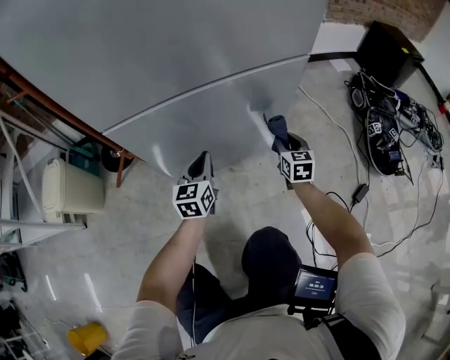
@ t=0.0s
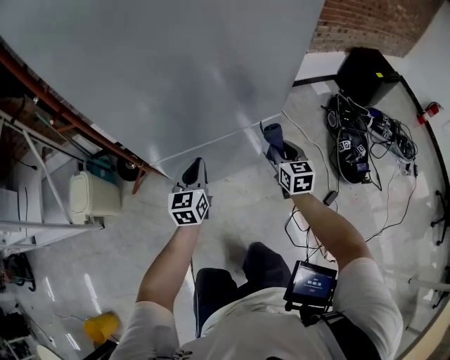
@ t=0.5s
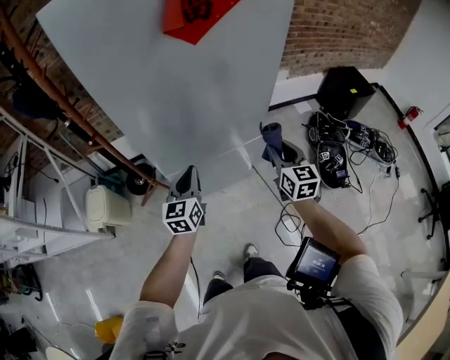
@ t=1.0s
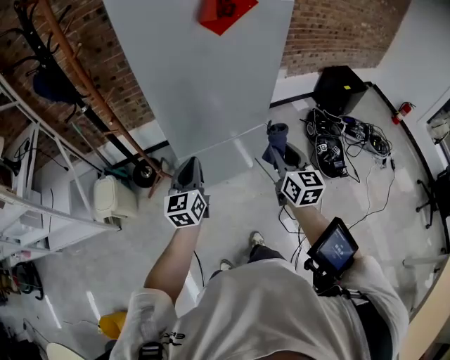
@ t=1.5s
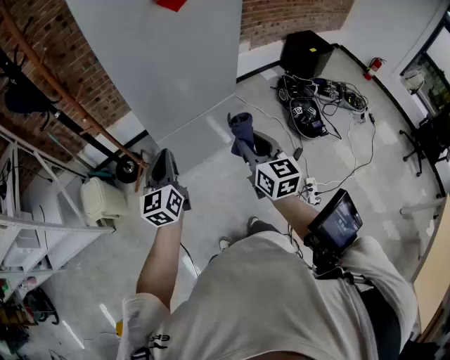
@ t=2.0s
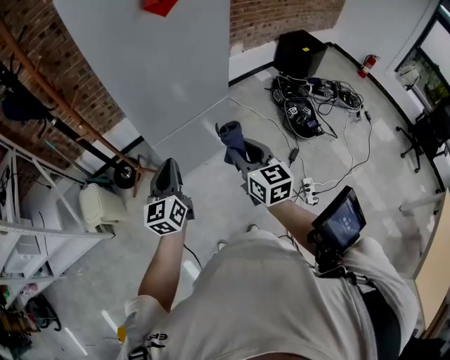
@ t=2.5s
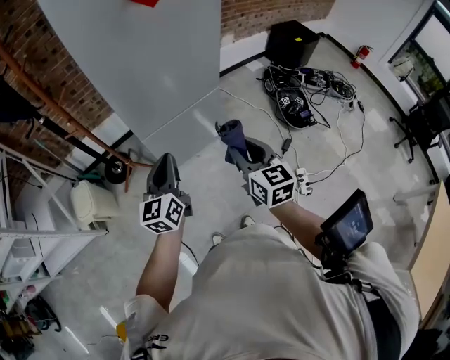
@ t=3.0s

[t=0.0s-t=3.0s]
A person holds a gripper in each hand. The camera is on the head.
t=0.0s to t=1.5s: The left gripper shifts roughly 60 cm upward. The right gripper is displaced upward and backward by approximately 70 cm, and turns by approximately 20 degrees.
t=1.5s to t=3.0s: The grippers both shift backward by roughly 10 cm.

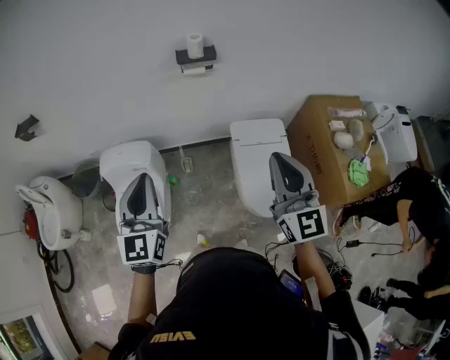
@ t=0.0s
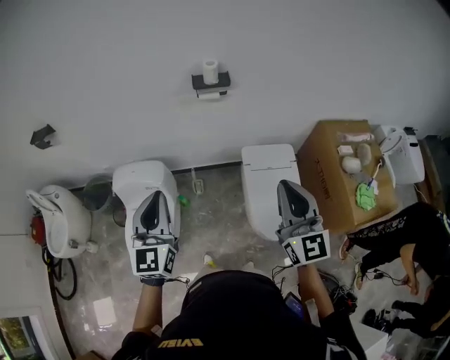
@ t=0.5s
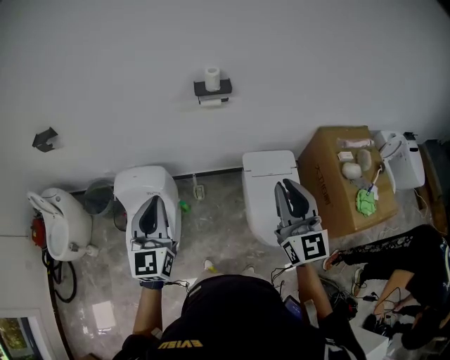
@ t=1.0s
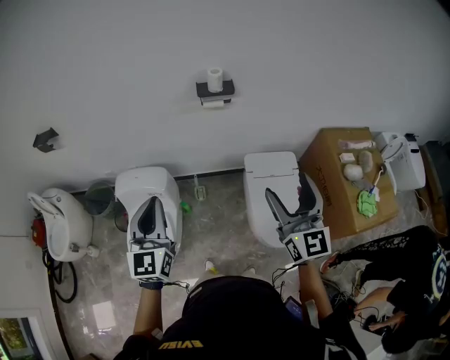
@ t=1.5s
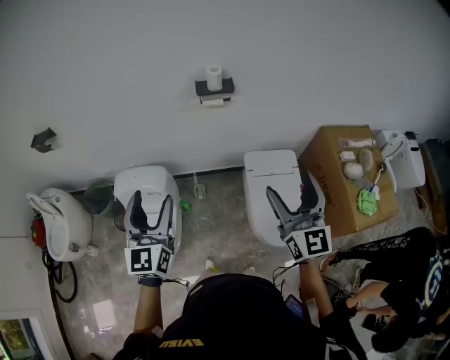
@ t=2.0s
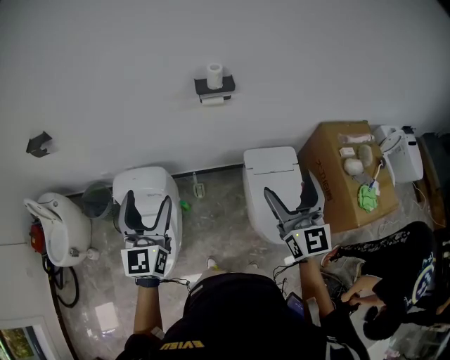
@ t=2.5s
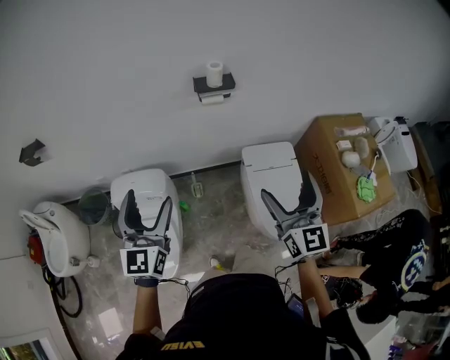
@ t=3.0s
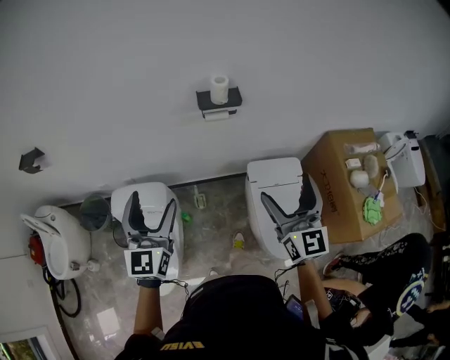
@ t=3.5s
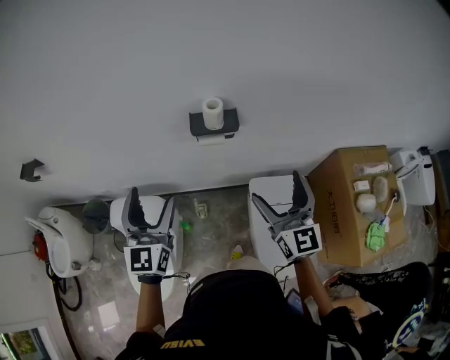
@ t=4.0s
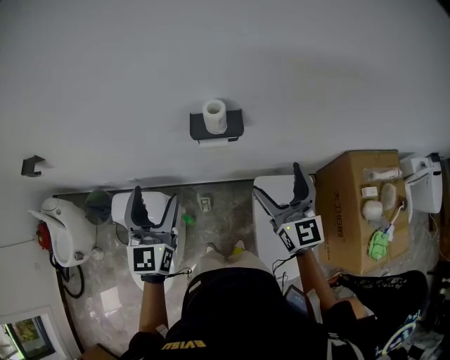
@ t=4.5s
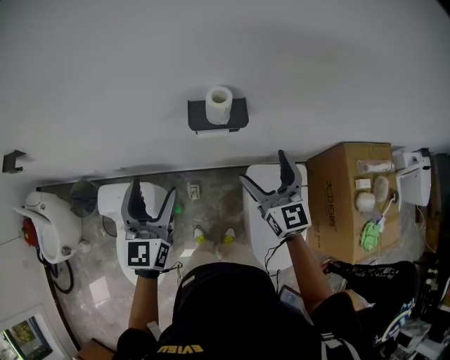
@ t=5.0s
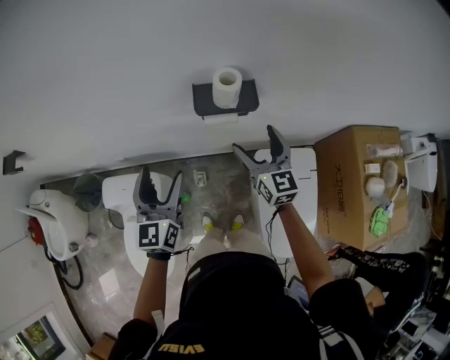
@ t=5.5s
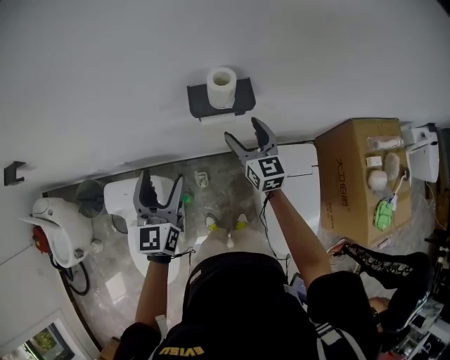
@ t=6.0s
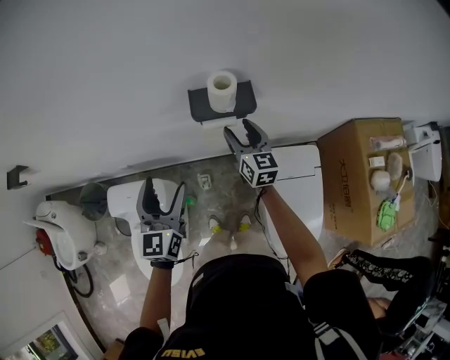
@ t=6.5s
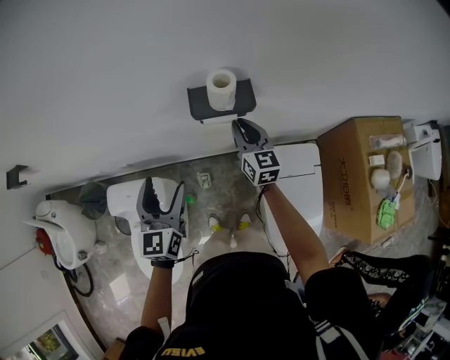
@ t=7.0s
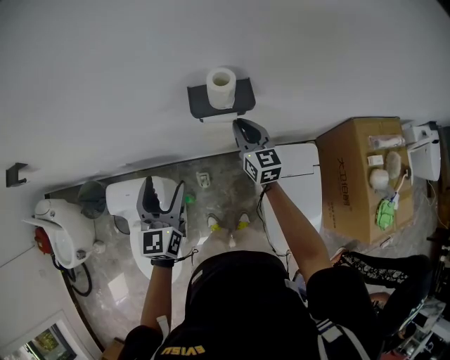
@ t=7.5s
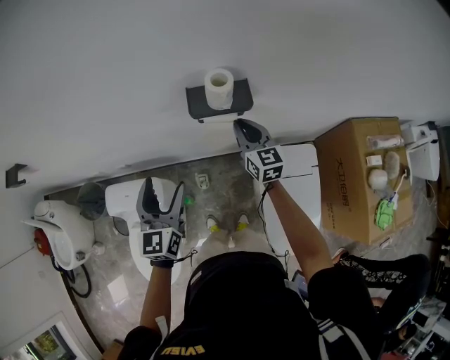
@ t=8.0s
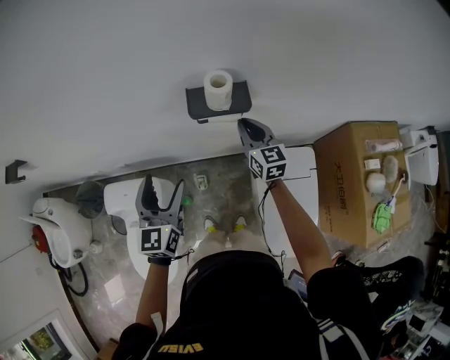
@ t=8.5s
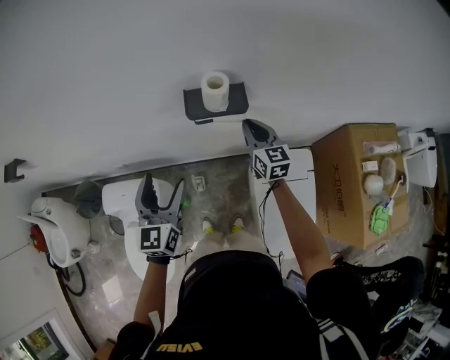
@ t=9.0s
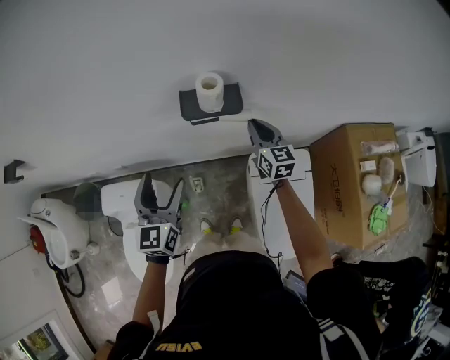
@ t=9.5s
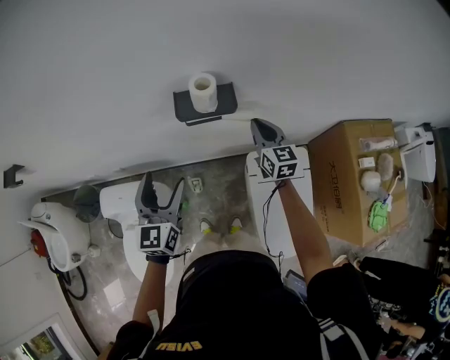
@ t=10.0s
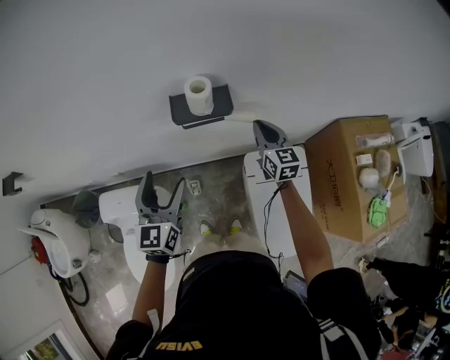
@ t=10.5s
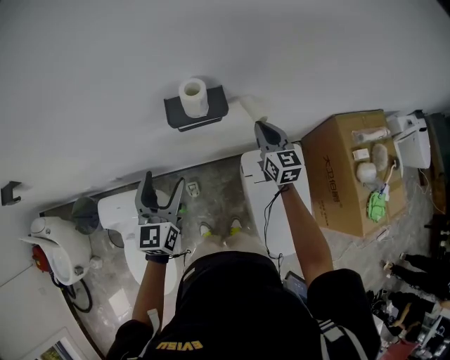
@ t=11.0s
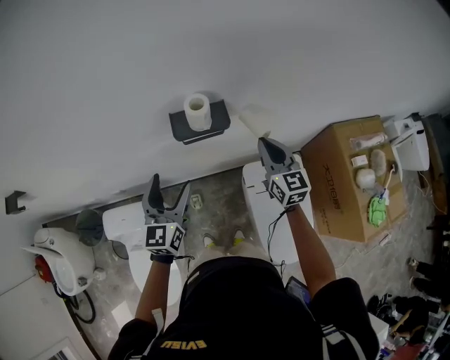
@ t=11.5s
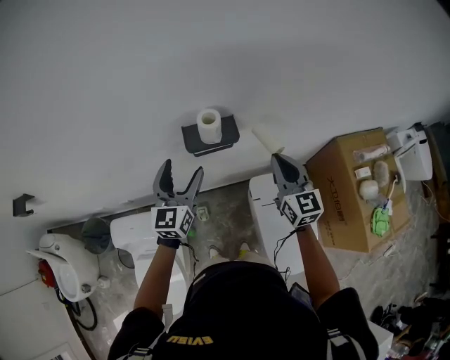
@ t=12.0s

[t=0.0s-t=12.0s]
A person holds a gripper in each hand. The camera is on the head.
t=0.0s to t=2.0s: The right gripper opens its fingers, while the left gripper opens its fingers.
t=2.0s to t=4.0s: The grippers both shift forward by some 25 cm.
t=4.0s to t=6.0s: The right gripper shifts approximately 25 cm forward and downward. Meanwhile the left gripper moves downward and forward, roughly 15 cm.
t=6.0s to t=8.0s: The right gripper closes up.
t=8.0s to t=10.0s: The right gripper shifts approximately 10 cm to the right.
t=10.0s to t=12.0s: The left gripper heads forward, covering some 10 cm. The right gripper travels upward and backward by about 15 cm.

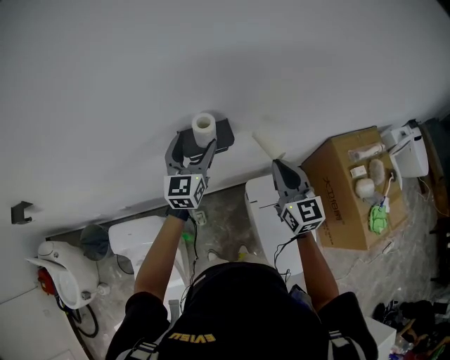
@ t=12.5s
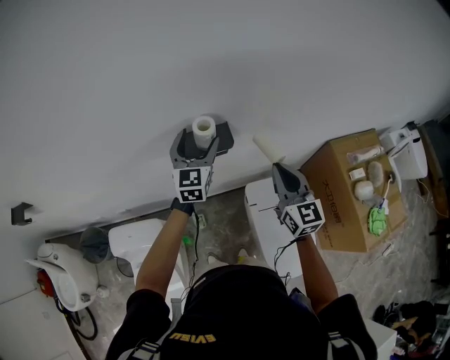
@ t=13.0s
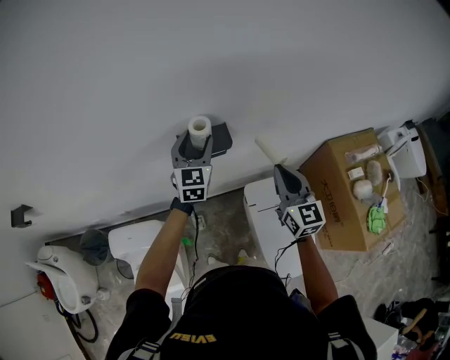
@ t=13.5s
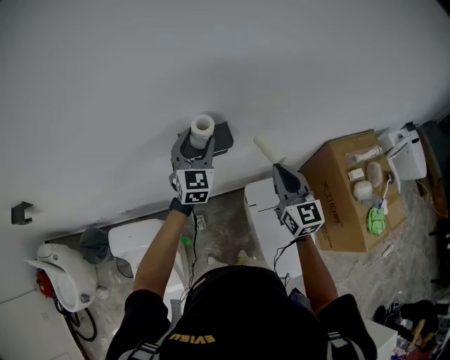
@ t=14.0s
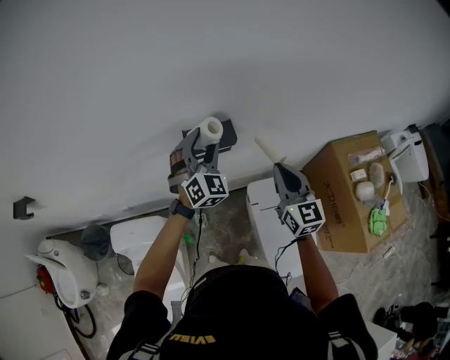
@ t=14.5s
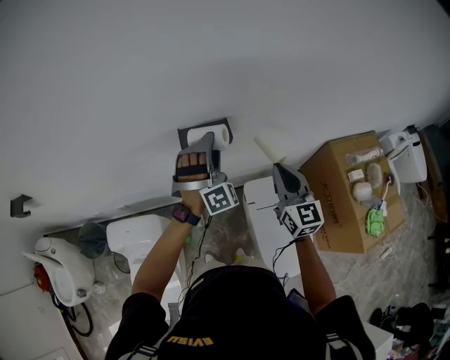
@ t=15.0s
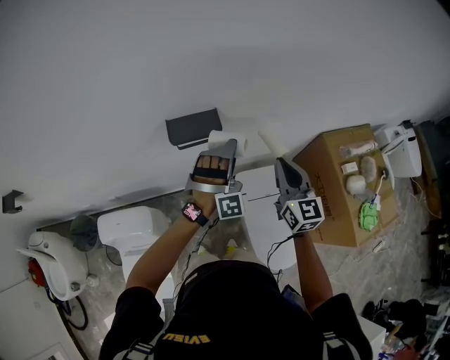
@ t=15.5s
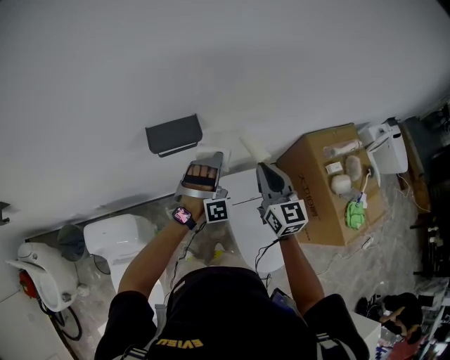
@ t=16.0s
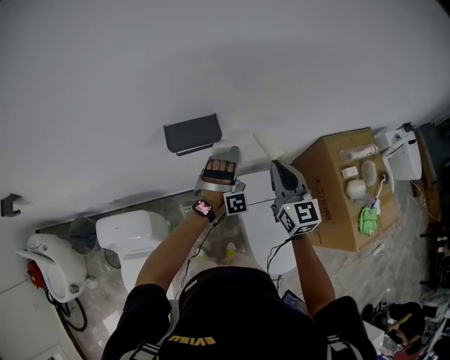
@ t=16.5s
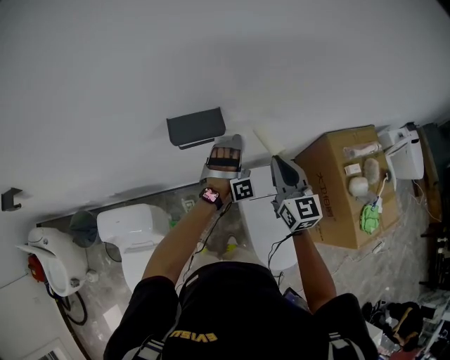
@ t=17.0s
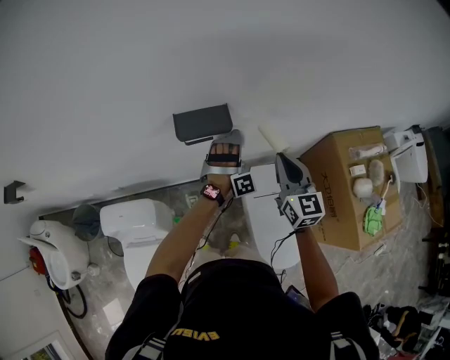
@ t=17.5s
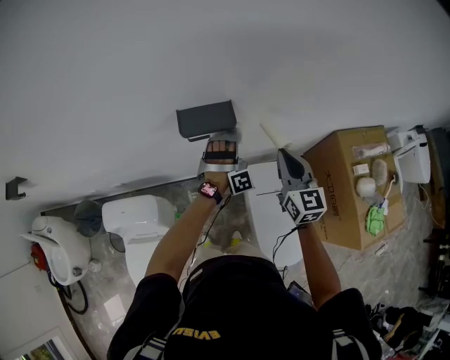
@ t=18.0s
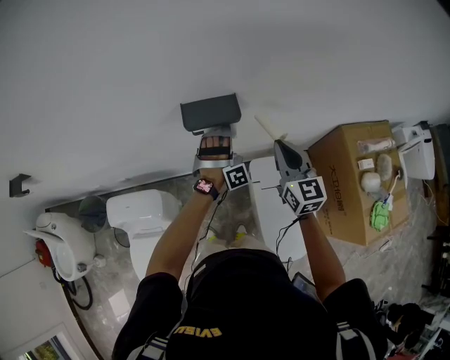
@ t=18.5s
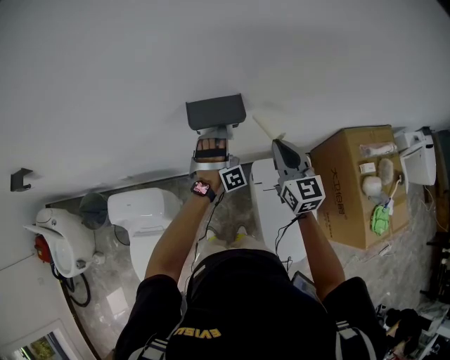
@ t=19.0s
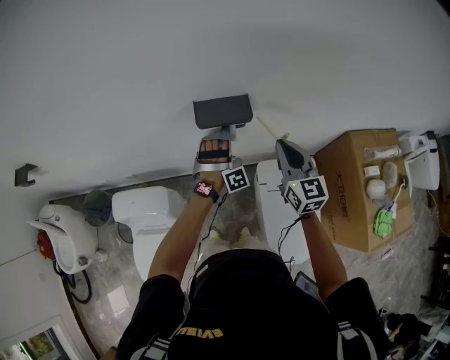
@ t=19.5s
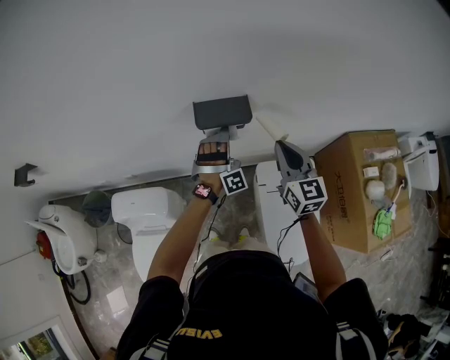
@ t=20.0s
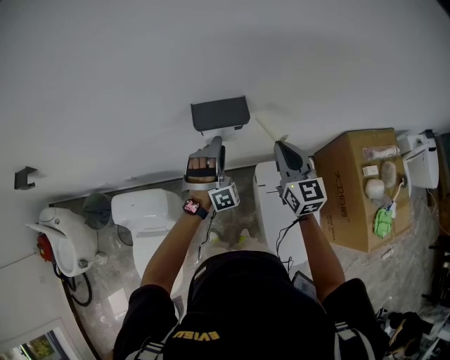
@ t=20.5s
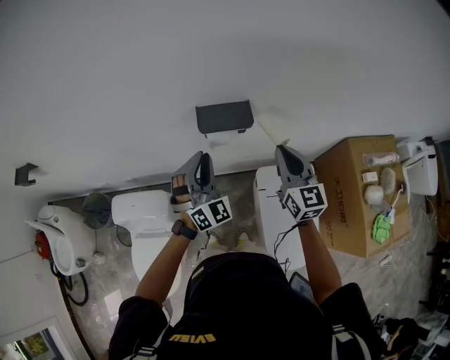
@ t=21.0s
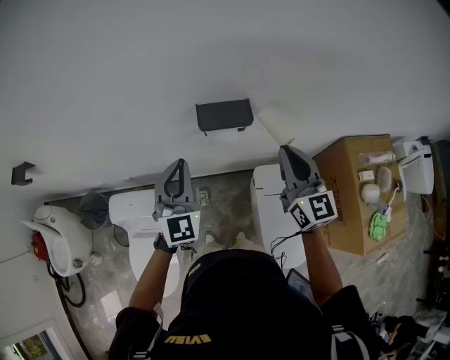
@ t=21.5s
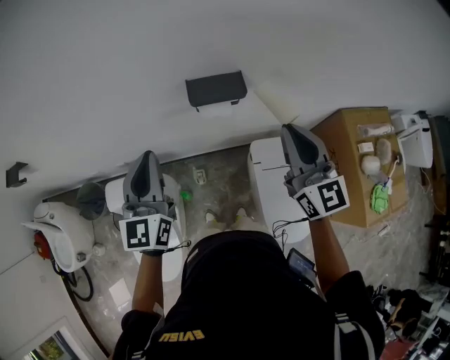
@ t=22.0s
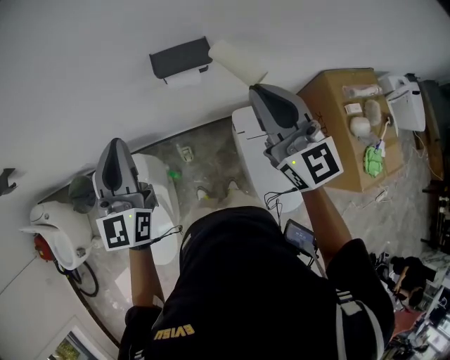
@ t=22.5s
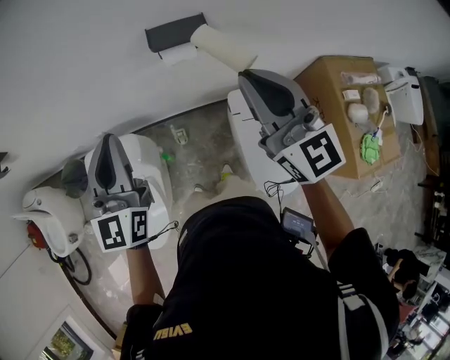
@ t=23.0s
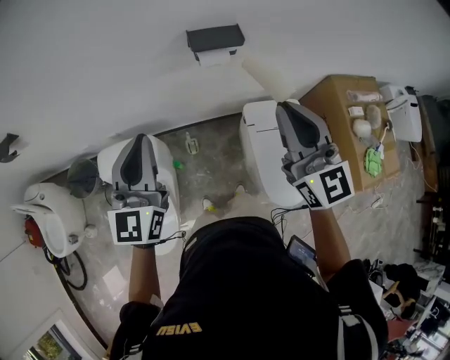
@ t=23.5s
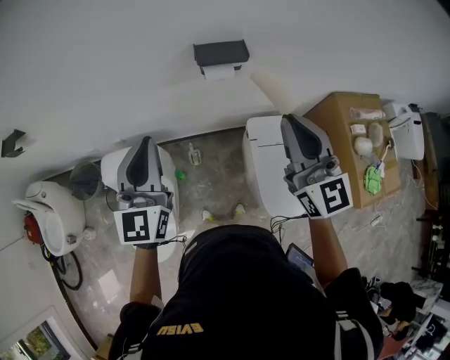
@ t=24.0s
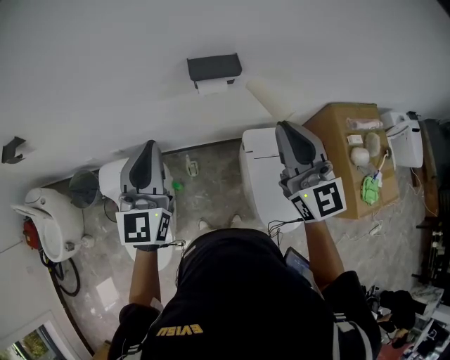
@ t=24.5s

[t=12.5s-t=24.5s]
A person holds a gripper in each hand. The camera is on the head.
t=12.5s to t=14.5s: The left gripper rolls clockwise, seen from behind, by approximately 50 degrees, and closes.
t=14.5s to t=16.5s: The left gripper heads downward and to the right, covering roughly 20 cm, and rotates around the line of its fingers by about 50 degrees, clockwise from behind.
t=16.5s to t=18.5s: The right gripper ends up about 5 cm from where it was, while the left gripper is displaced to the left by approximately 10 cm.
t=18.5s to t=20.5s: The left gripper is displaced to the left by some 5 cm.
t=20.5s to t=22.5s: The right gripper travels upward and backward by some 15 cm; the left gripper is displaced upward, to the left and backward by approximately 30 cm, rotates around the line of its fingers by about 90 degrees, counterclockwise from behind, and closes up.
t=22.5s to t=24.5s: The two grippers go about 5 cm backward.
